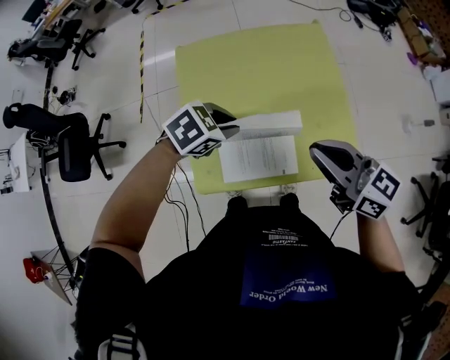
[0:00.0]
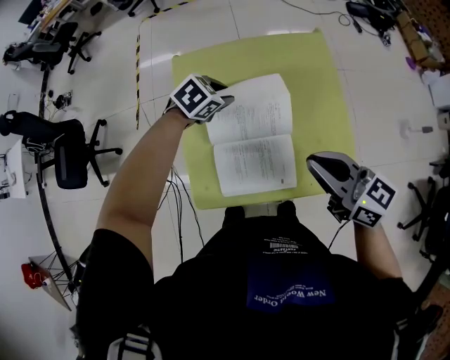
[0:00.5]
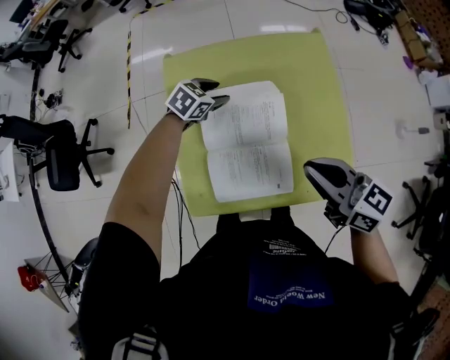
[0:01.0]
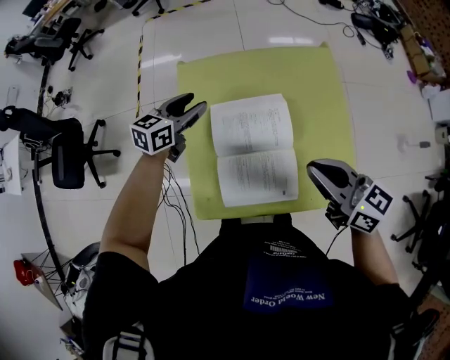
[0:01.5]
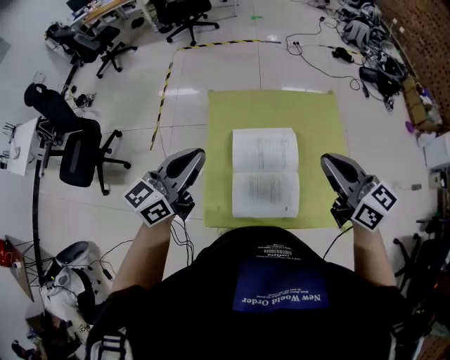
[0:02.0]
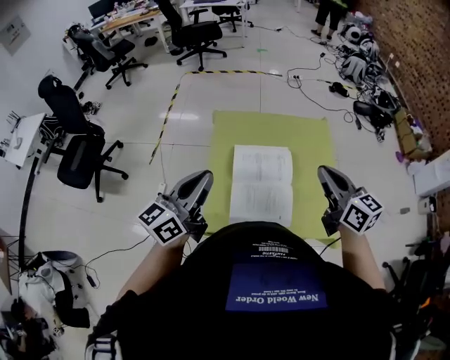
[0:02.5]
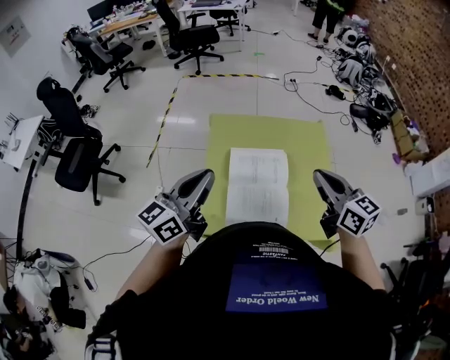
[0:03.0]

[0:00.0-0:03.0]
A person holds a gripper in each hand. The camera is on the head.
0:00.0 to 0:01.5: The right gripper shifts by approximately 5 cm, while the left gripper moves some 10 cm downward and comes back, angles its fingers upward, by some 40 degrees, and opens.
0:01.5 to 0:03.0: The right gripper moves upward, approximately 10 cm; the left gripper goes some 35 cm backward and upward, tips its fingers upward by some 30 degrees, and closes its fingers.

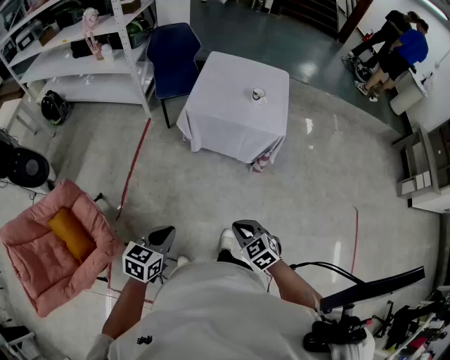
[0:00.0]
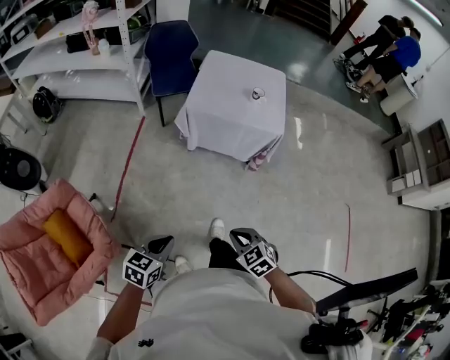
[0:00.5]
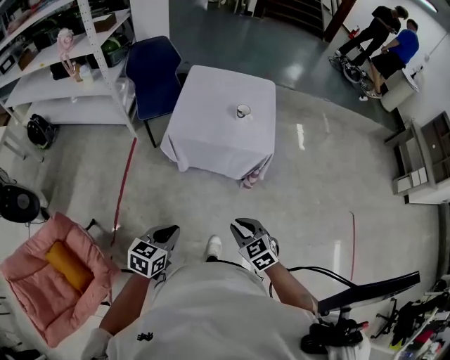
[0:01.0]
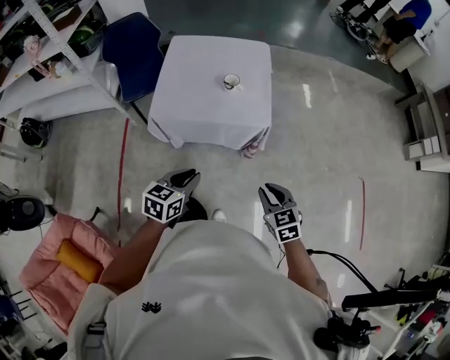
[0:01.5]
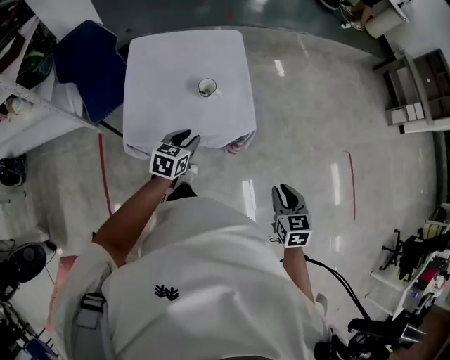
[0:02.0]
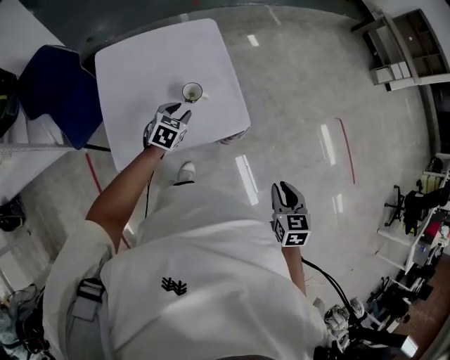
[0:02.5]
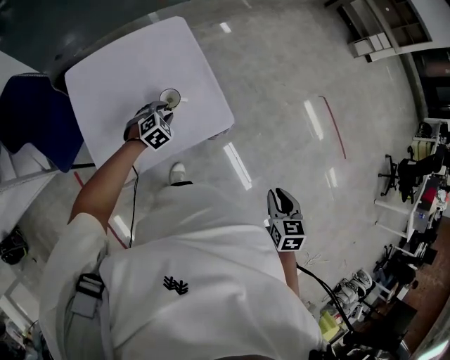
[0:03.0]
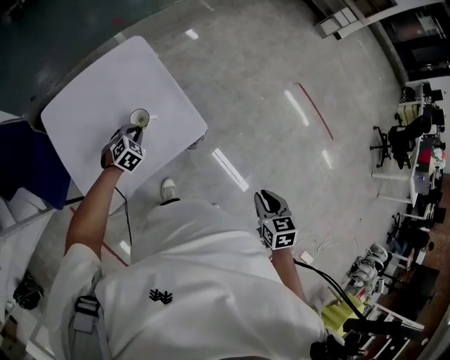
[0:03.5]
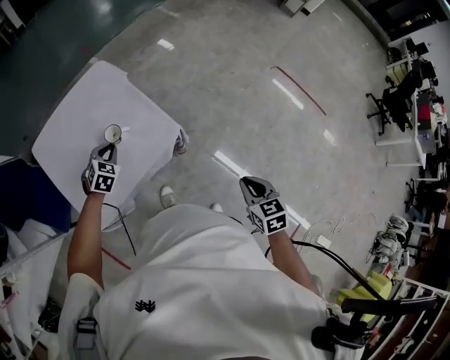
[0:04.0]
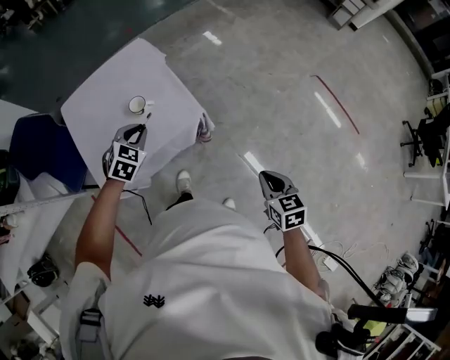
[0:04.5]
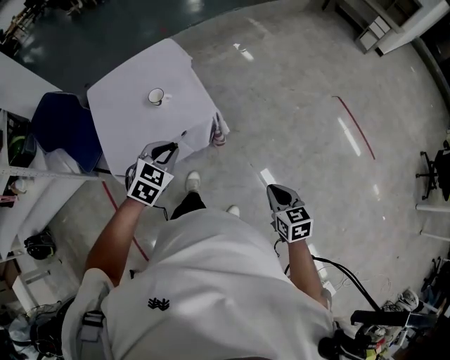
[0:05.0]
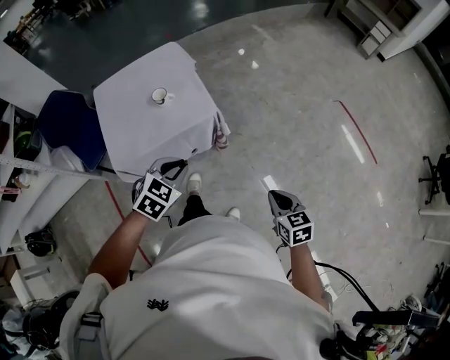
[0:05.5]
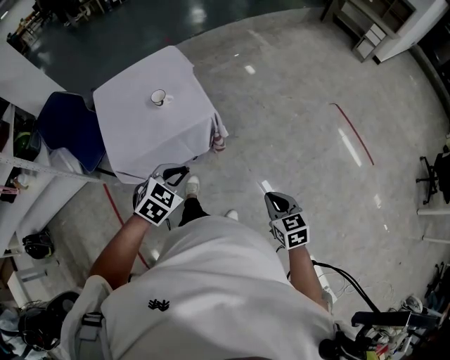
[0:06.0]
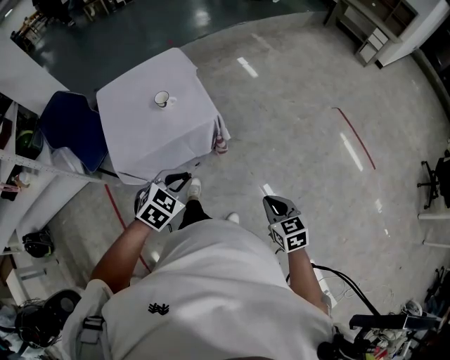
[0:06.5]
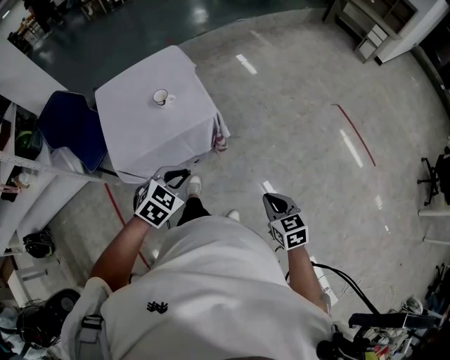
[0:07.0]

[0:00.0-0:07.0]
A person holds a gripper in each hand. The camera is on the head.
0:00.0 to 0:02.0: The right gripper shifts by approximately 40 cm, turns by approximately 60 degrees, and opens up. Meanwhile the left gripper moves roughly 60 cm, swivels some 20 degrees, and opens.
0:02.0 to 0:03.5: The right gripper changes its angle by roughly 30 degrees. Meanwhile the left gripper goes roughly 25 cm forward, downward and to the left, and rotates around the line of its fingers by about 50 degrees, clockwise from behind.
0:03.5 to 0:05.0: The left gripper shifts some 40 cm backward, to the right and upward; the right gripper shifts roughly 15 cm to the right and backward, and turns by approximately 20 degrees.
0:05.0 to 0:07.0: The right gripper travels backward by some 5 cm; the left gripper goes about 15 cm backward and to the right.

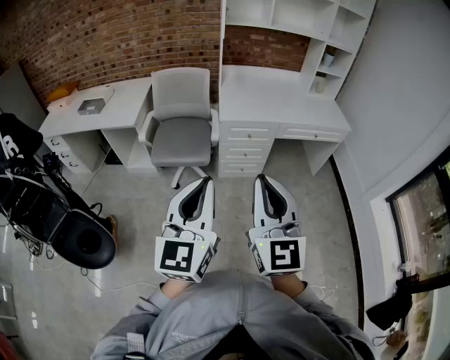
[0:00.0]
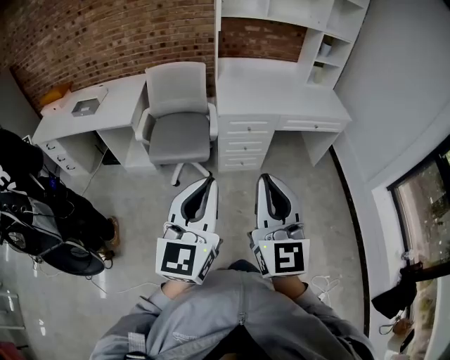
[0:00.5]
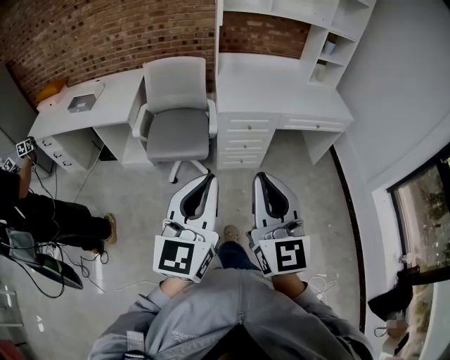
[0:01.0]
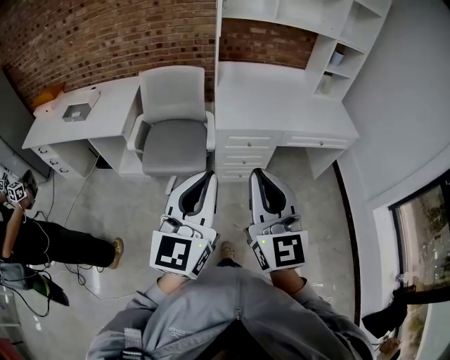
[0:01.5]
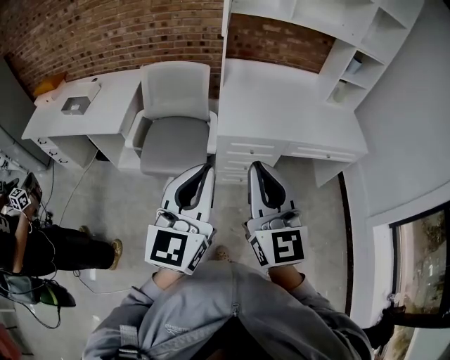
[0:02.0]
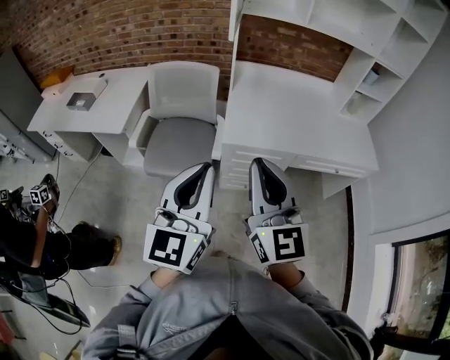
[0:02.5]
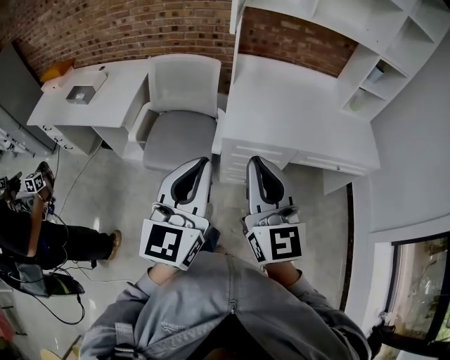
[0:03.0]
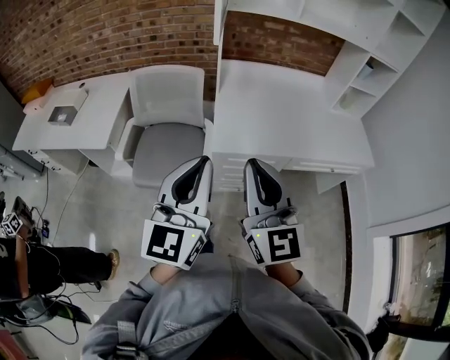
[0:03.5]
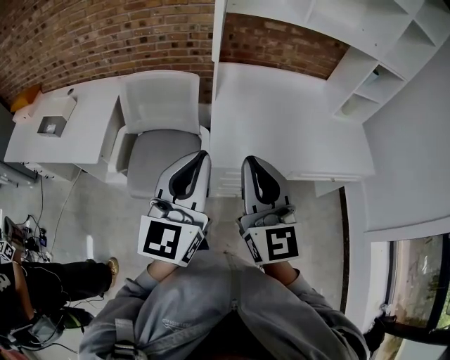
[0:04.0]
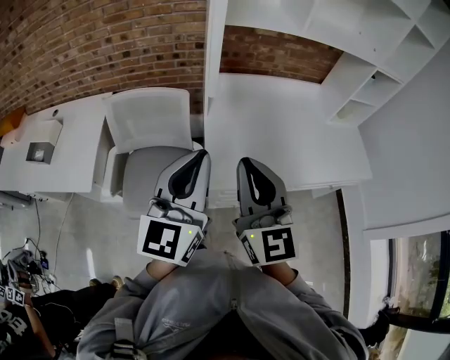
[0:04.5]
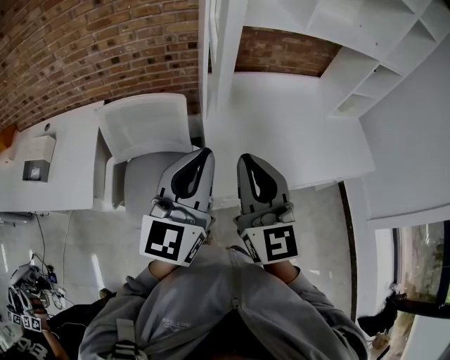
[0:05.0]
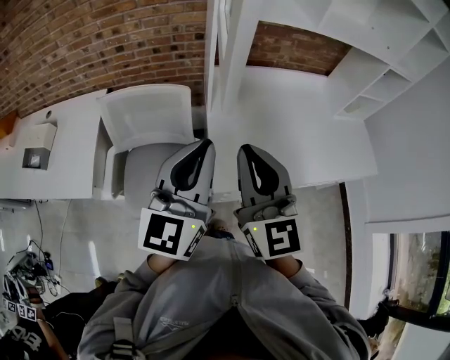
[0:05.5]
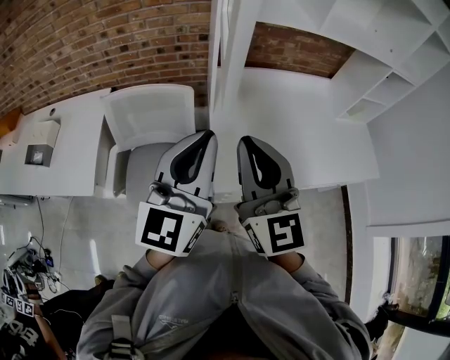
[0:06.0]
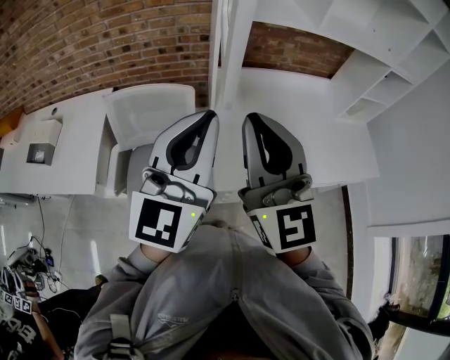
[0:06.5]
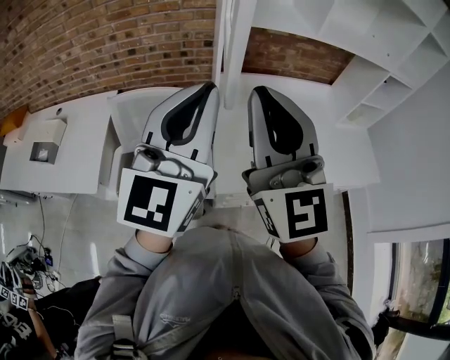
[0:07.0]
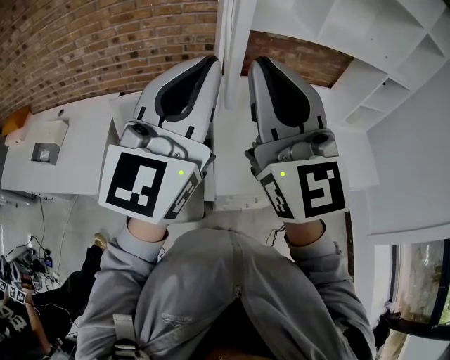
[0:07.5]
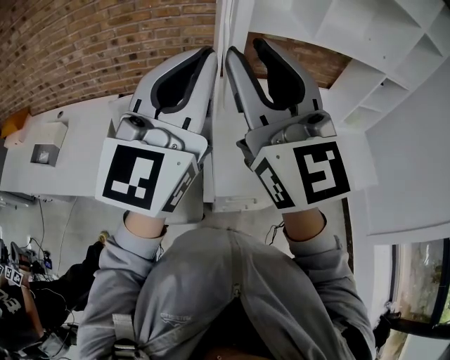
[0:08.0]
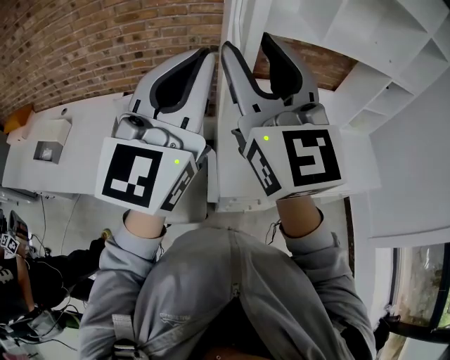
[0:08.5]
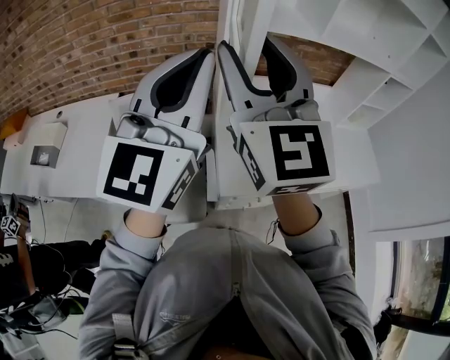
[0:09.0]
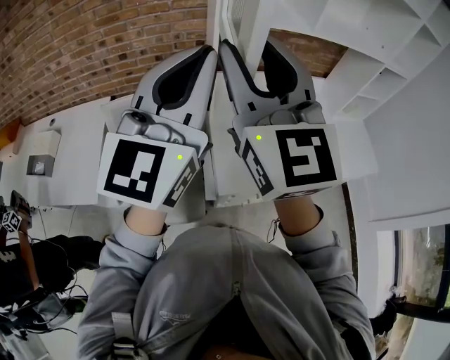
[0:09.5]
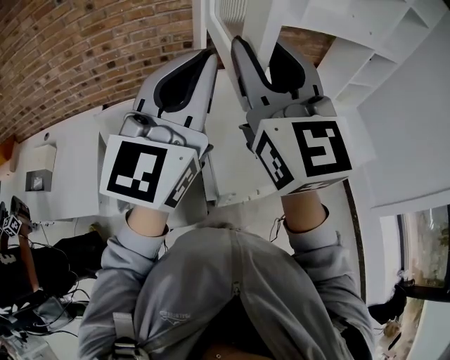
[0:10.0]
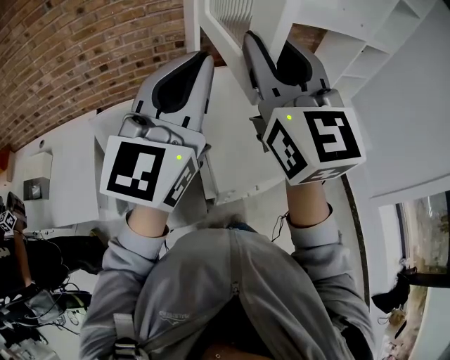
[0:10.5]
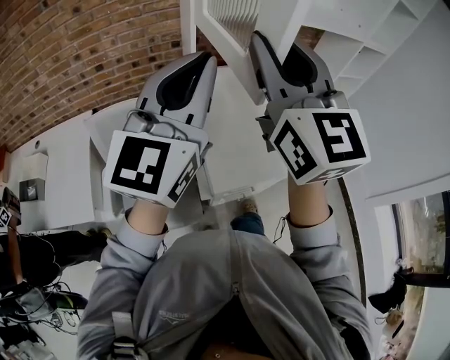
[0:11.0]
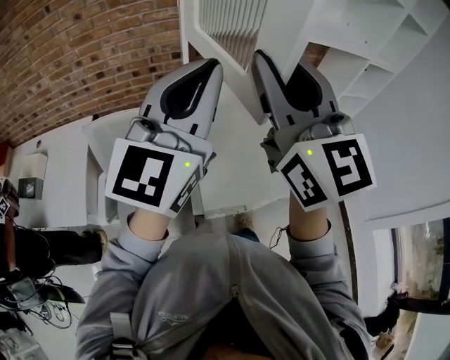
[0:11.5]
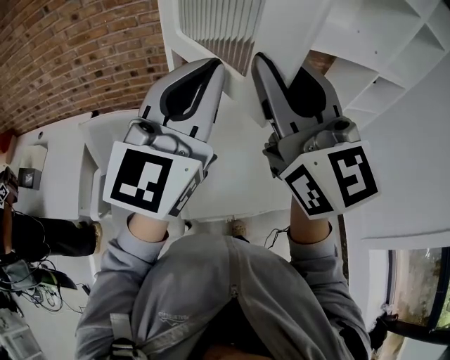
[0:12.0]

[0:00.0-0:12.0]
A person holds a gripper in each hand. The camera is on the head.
0:00.0 to 0:02.0: The two grippers go roughly 25 cm forward.
0:02.0 to 0:04.0: The grippers both shift forward by roughly 25 cm.
0:04.0 to 0:06.0: The two grippers go roughly 15 cm forward.
0:06.0 to 0:08.0: The grippers both shift upward by roughly 15 cm. The right gripper opens up.
0:08.0 to 0:10.0: The right gripper goes some 5 cm forward.
0:10.0 to 0:12.0: The grippers both shift to the right and forward by some 15 cm.

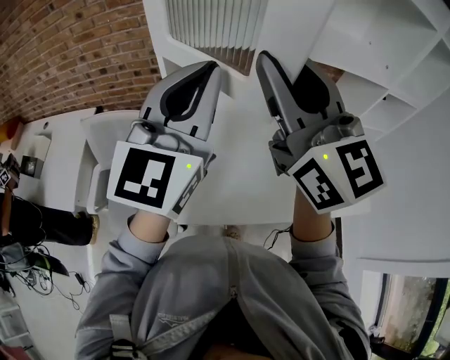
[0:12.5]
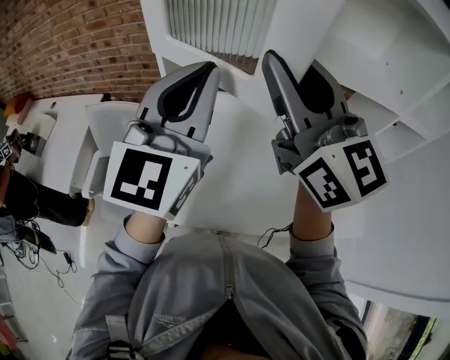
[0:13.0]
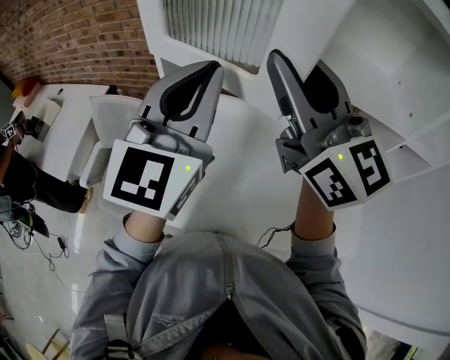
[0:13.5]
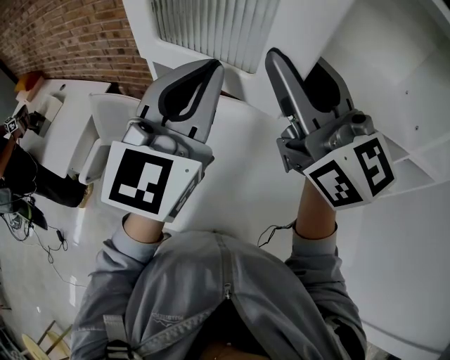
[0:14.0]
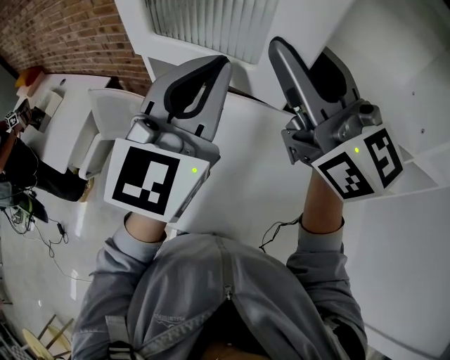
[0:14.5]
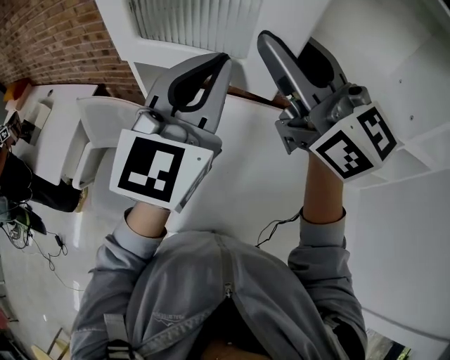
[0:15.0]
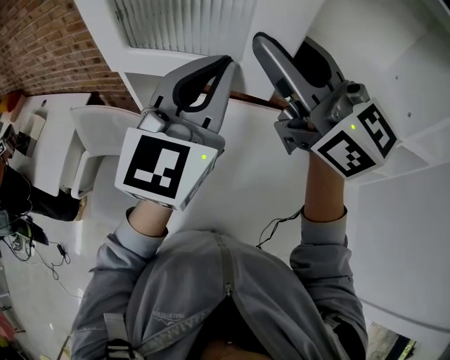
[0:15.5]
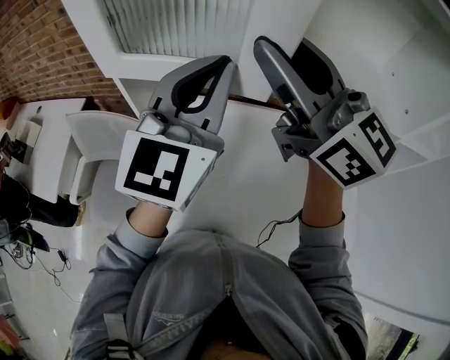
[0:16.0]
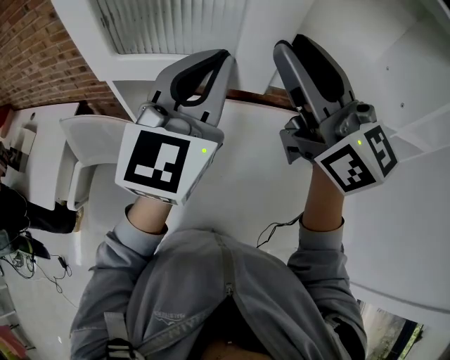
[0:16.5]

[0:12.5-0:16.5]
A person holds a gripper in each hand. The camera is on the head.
0:12.5 to 0:14.5: The left gripper heads to the right and forward, covering roughly 10 cm; the right gripper is displaced forward and to the right by approximately 15 cm, and swivels approximately 30 degrees.
0:14.5 to 0:16.5: The left gripper shifts by about 5 cm; the right gripper shifts some 5 cm to the right.
